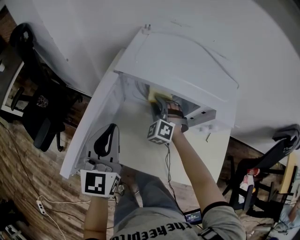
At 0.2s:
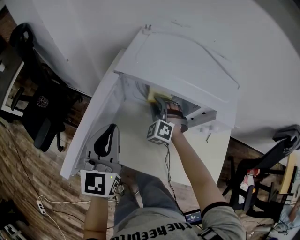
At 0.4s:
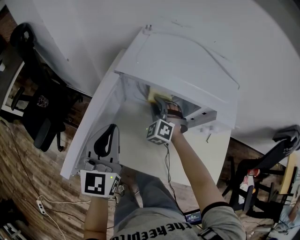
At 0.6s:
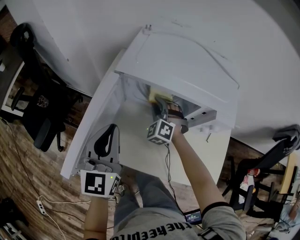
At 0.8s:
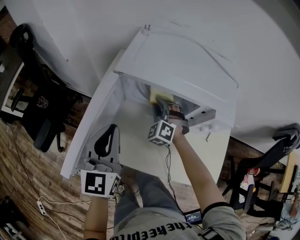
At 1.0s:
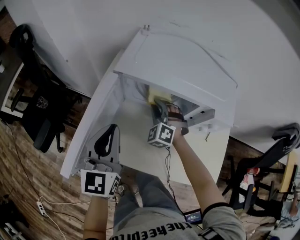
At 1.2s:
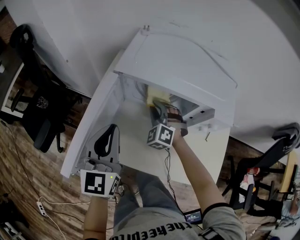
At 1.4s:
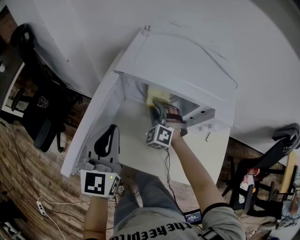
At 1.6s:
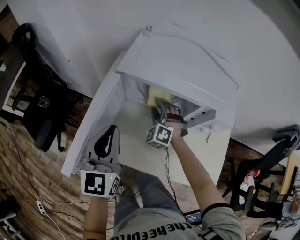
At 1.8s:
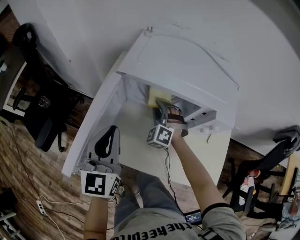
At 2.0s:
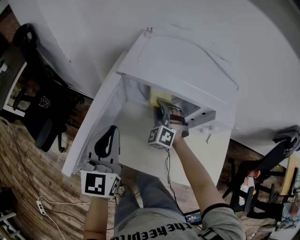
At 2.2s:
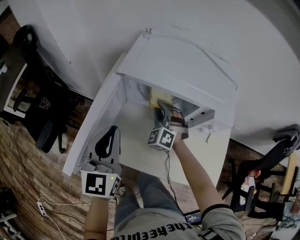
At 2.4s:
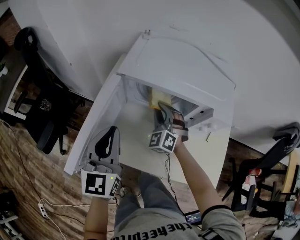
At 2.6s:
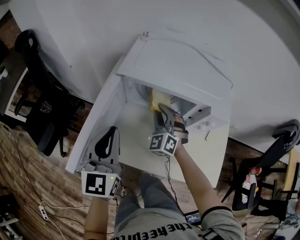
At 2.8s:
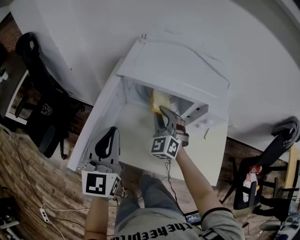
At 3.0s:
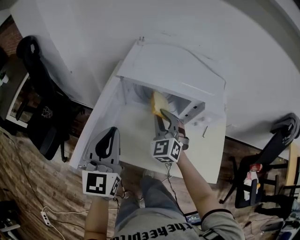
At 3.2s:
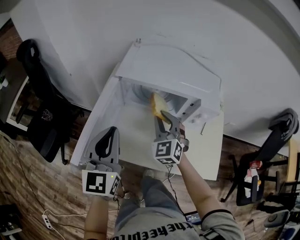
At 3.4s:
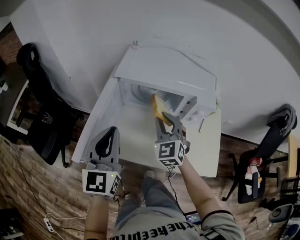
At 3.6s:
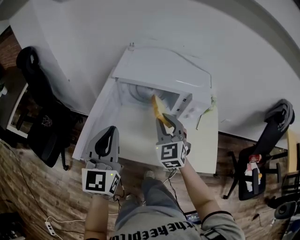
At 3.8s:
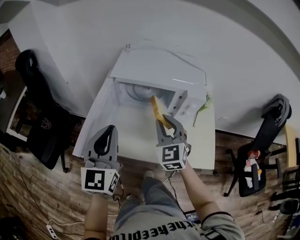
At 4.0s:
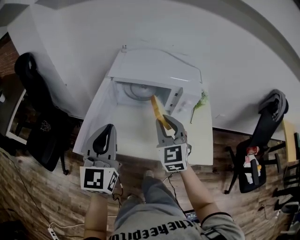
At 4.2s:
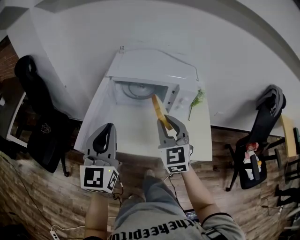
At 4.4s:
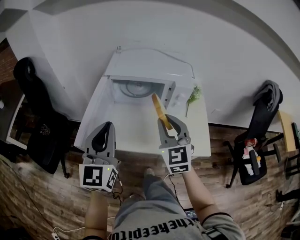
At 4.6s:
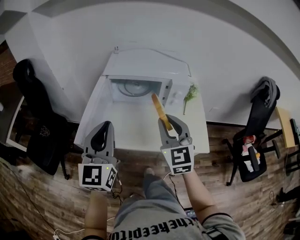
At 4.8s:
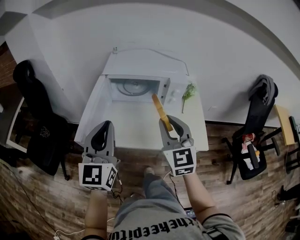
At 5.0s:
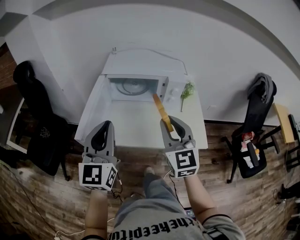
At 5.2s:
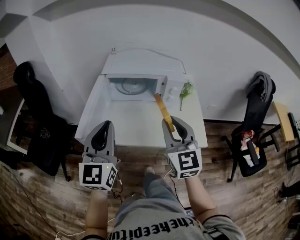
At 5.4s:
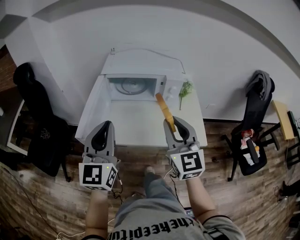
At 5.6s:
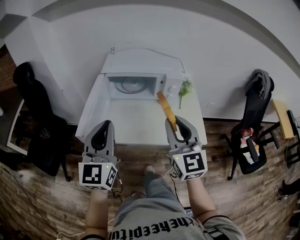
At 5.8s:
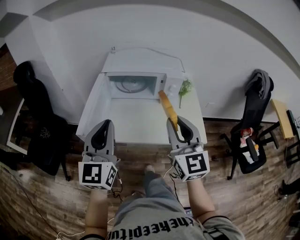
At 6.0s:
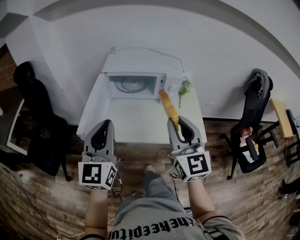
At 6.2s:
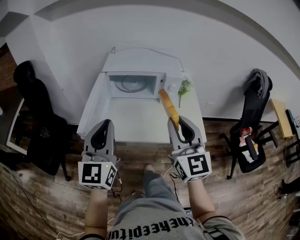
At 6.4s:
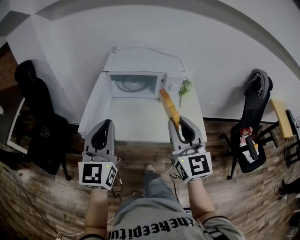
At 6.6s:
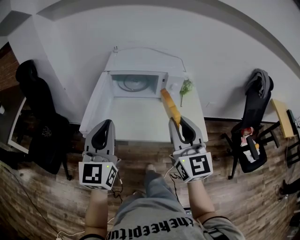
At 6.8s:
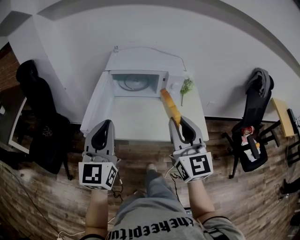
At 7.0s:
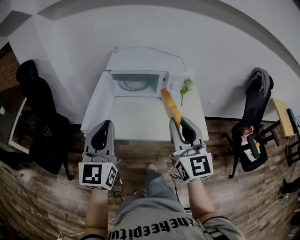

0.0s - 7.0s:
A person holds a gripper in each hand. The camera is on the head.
0.0s - 1.4s: The grippers move only a little.
1.4s - 2.8s: The right gripper goes roughly 10 cm upward, and swivels approximately 20 degrees.
2.8s - 4.2s: The left gripper heads backward and upward, covering roughly 10 cm; the right gripper heads backward and upward, covering approximately 20 cm, and turns by roughly 30 degrees.
4.2s - 5.6s: The left gripper goes approximately 5 cm backward; the right gripper heads backward and upward, covering approximately 15 cm.
5.6s - 7.0s: The grippers make only small movements.

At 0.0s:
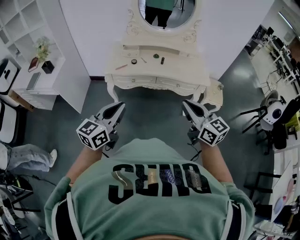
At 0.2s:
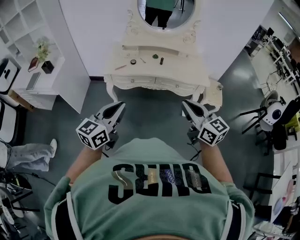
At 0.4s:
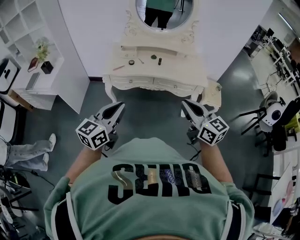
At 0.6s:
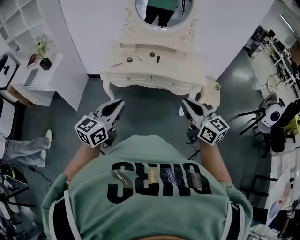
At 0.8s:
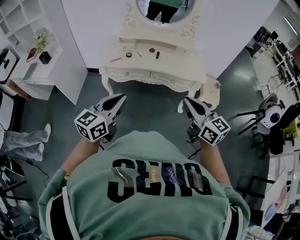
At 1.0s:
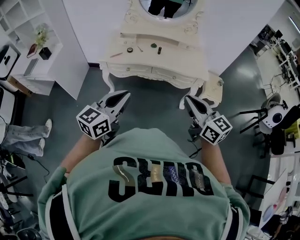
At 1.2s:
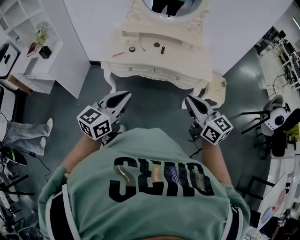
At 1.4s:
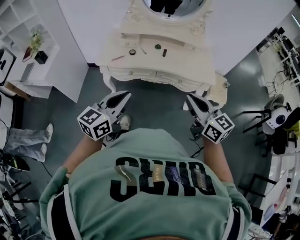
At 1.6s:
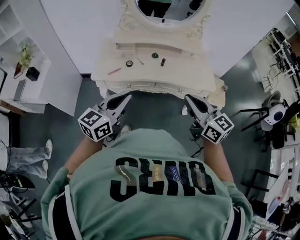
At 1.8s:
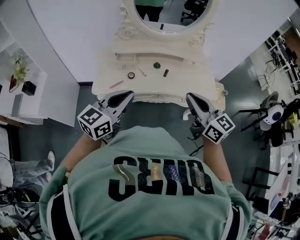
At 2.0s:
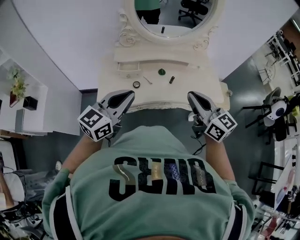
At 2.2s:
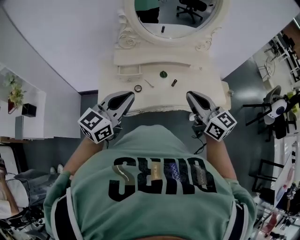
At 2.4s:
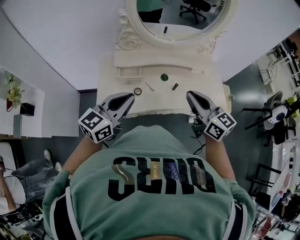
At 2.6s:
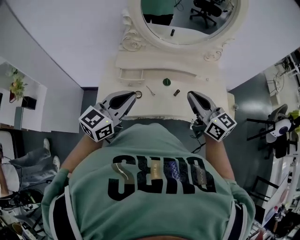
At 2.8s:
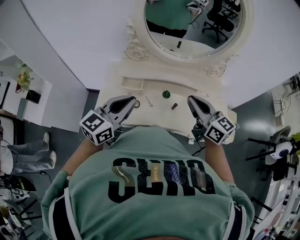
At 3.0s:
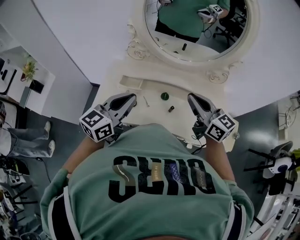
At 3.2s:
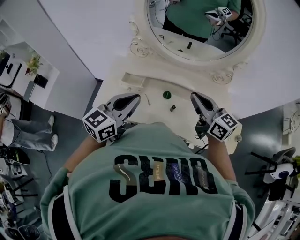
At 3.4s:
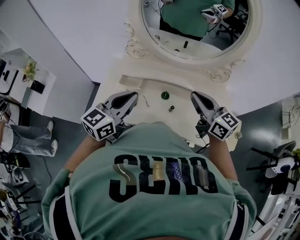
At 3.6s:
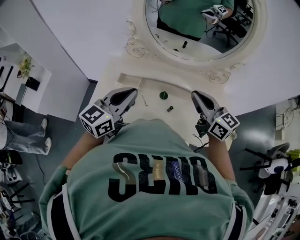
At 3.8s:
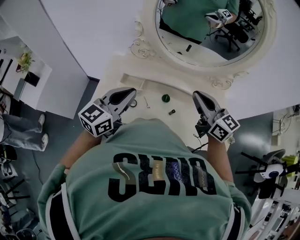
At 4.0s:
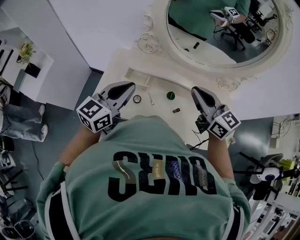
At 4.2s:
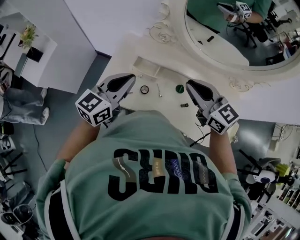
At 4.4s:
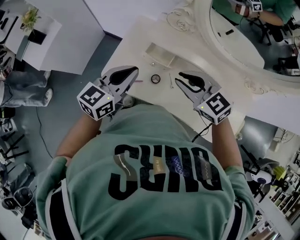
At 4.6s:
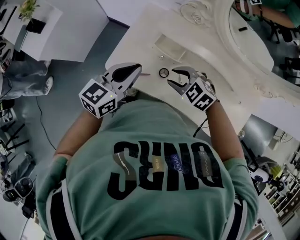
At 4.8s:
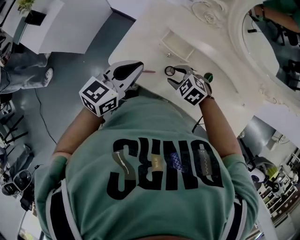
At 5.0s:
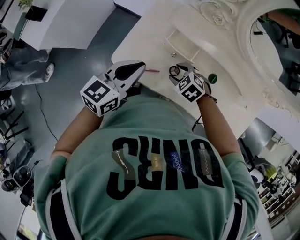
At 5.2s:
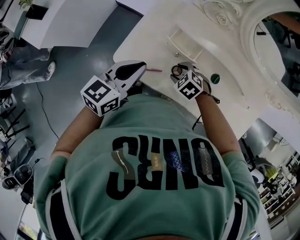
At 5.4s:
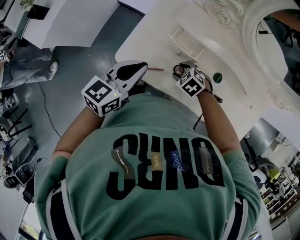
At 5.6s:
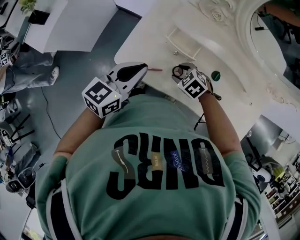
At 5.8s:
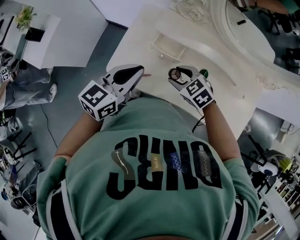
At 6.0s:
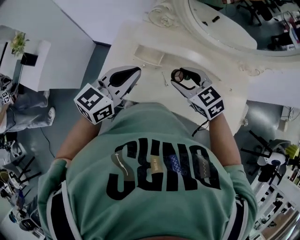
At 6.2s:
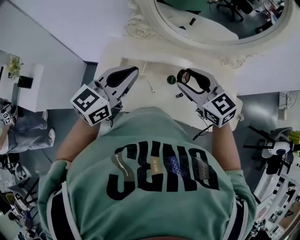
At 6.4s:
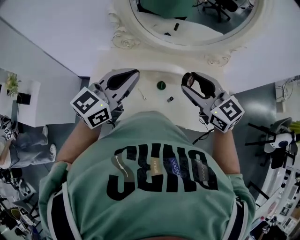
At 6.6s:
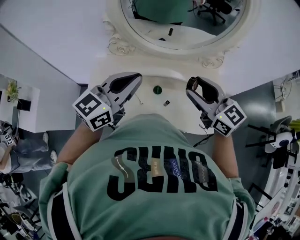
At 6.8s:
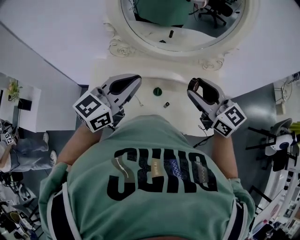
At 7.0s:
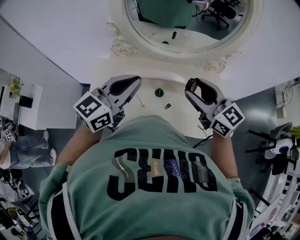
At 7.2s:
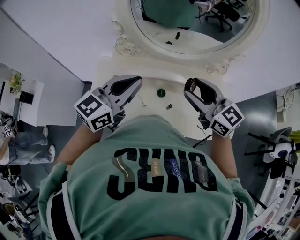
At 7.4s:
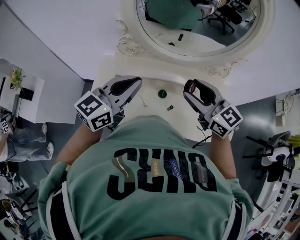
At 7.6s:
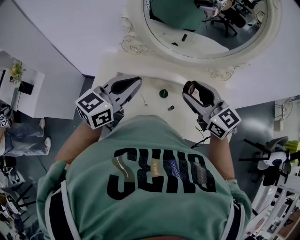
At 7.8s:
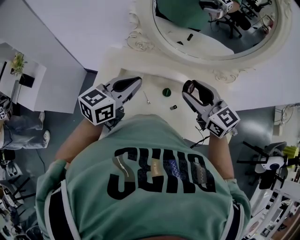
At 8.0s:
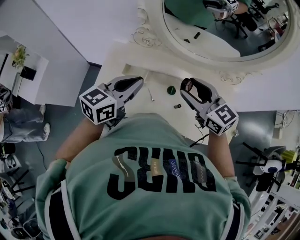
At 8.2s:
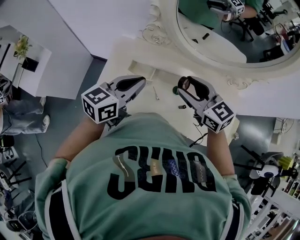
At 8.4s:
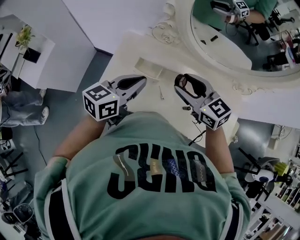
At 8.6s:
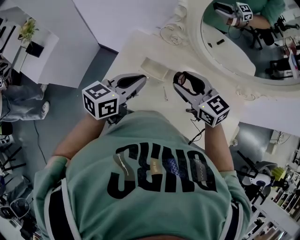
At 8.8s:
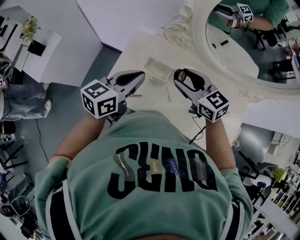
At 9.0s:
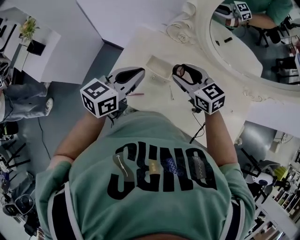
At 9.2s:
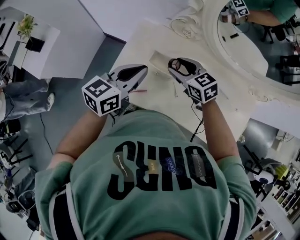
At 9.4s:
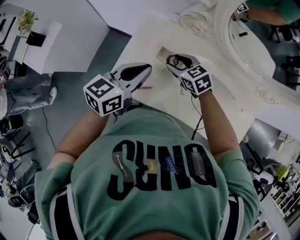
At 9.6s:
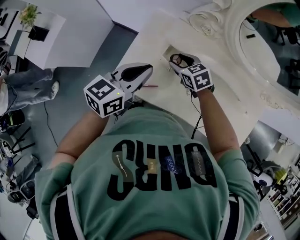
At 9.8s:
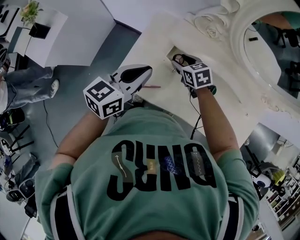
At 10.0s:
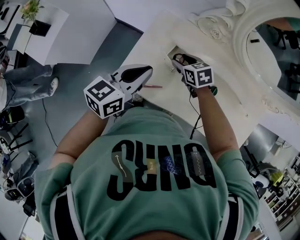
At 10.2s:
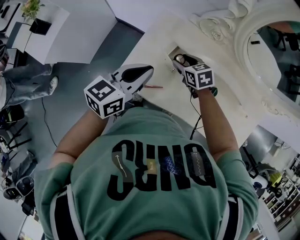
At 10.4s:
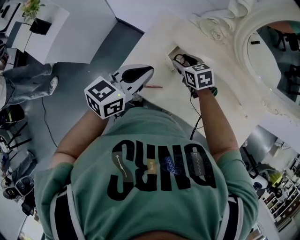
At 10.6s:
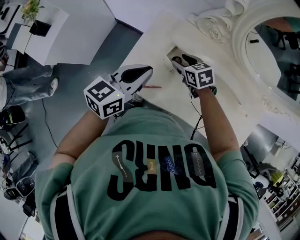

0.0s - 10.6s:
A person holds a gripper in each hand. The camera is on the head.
0.0s - 1.6s: Both grippers travel together forward, roughly 20 cm.
1.6s - 3.0s: The two grippers go approximately 35 cm forward.
3.0s - 4.6s: The left gripper ends up about 20 cm from where it was, while the right gripper moves roughly 35 cm, tilts its fingers roughly 50 degrees downward, and opens its fingers.
4.6s - 6.0s: Both grippers move upward and to the right, about 10 cm. The right gripper changes its angle by roughly 30 degrees.
6.0s - 7.6s: The left gripper travels to the right and upward by about 15 cm; the right gripper travels to the right and upward by approximately 20 cm, and turns by approximately 30 degrees.
7.6s - 9.0s: The left gripper is displaced to the left and downward by about 15 cm, and changes its angle by roughly 20 degrees; the right gripper is displaced to the left, downward and forward by approximately 25 cm, and turns by some 20 degrees.
9.0s - 10.6s: The right gripper goes roughly 20 cm downward and to the left, and rotates some 20 degrees, while the left gripper is displaced to the left by some 5 cm.

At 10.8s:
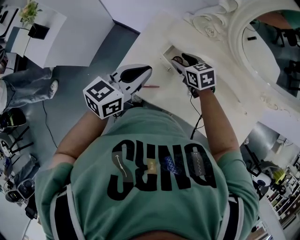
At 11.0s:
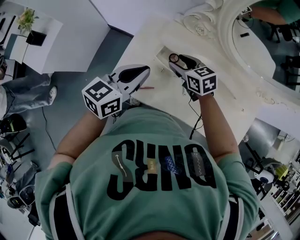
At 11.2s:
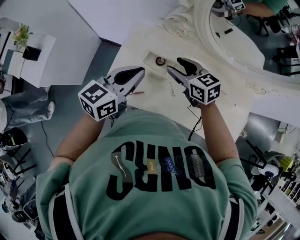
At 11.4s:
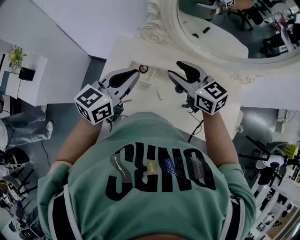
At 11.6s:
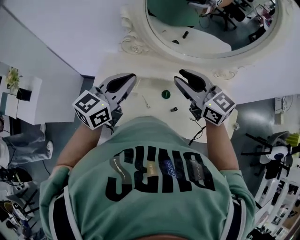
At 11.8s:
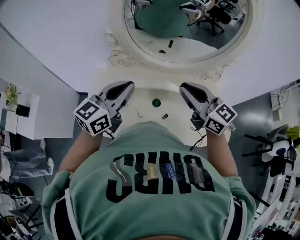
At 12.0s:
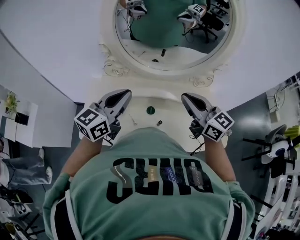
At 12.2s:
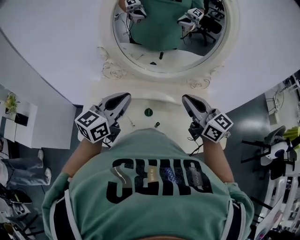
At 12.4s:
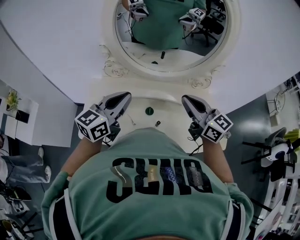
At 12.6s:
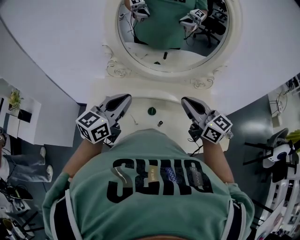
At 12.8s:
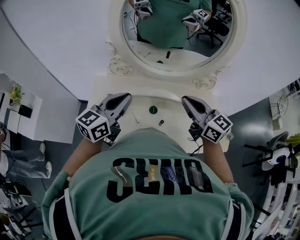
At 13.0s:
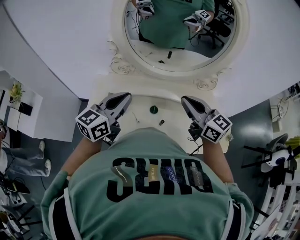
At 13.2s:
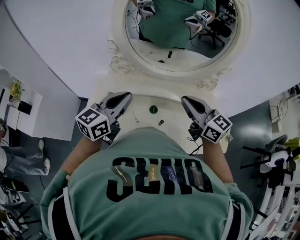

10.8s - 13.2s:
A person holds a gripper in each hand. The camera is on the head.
10.8s - 12.0s: The left gripper moves to the right and upward, roughly 25 cm, and swivels approximately 30 degrees. The right gripper shifts approximately 50 cm upward, to the right and backward, angles its fingers upward, by some 40 degrees, and closes its fingers.
12.0s - 13.2s: The grippers make only small movements.

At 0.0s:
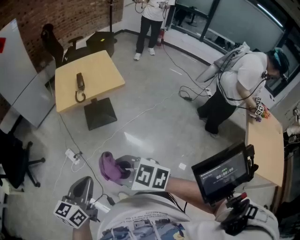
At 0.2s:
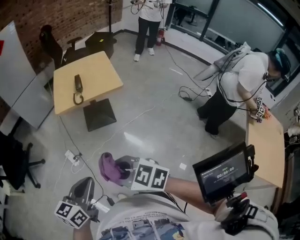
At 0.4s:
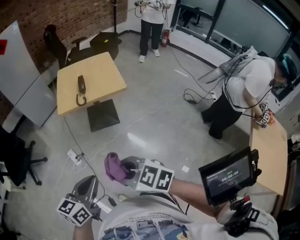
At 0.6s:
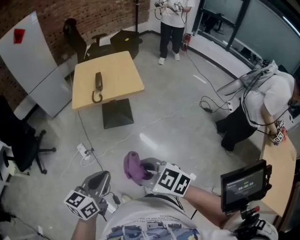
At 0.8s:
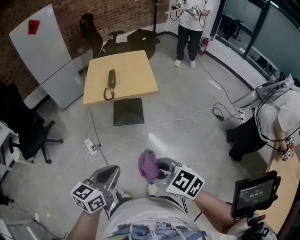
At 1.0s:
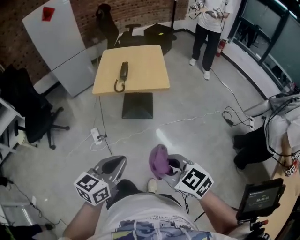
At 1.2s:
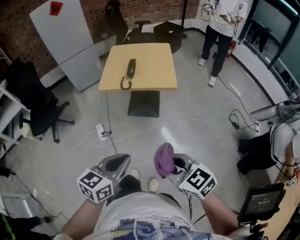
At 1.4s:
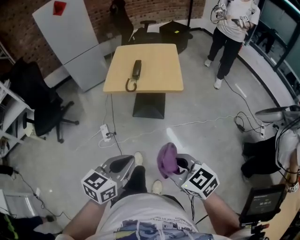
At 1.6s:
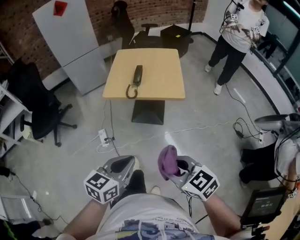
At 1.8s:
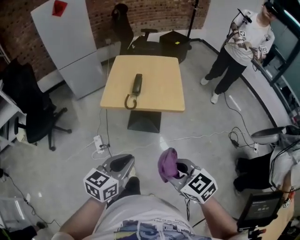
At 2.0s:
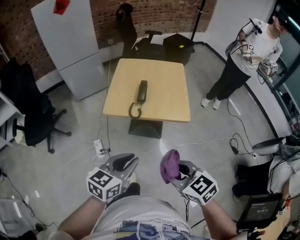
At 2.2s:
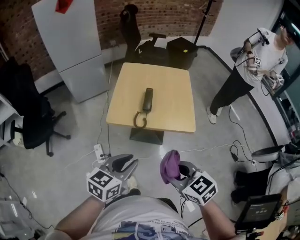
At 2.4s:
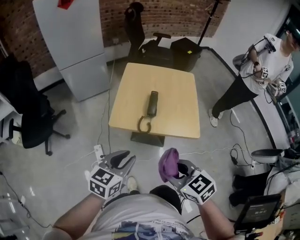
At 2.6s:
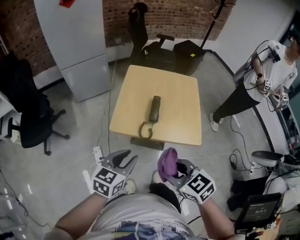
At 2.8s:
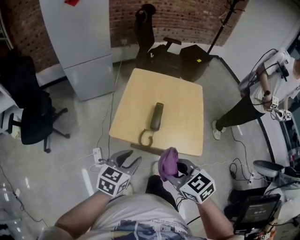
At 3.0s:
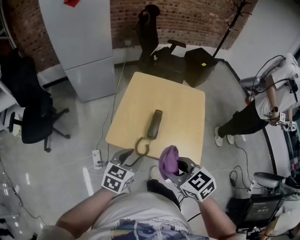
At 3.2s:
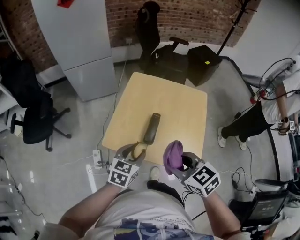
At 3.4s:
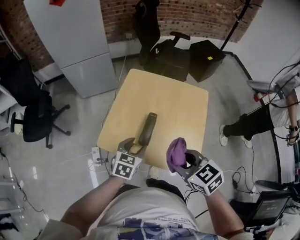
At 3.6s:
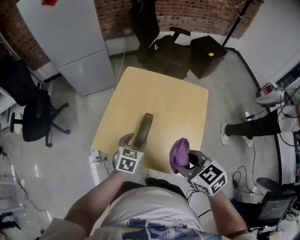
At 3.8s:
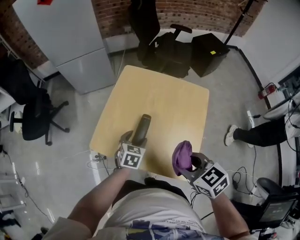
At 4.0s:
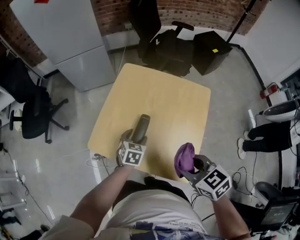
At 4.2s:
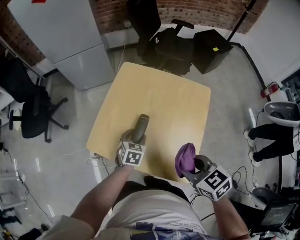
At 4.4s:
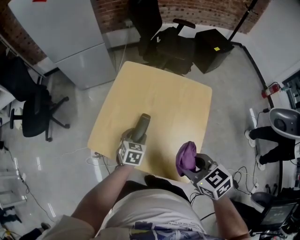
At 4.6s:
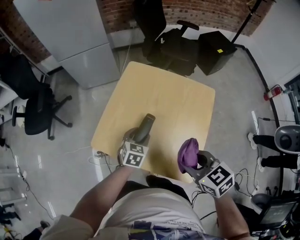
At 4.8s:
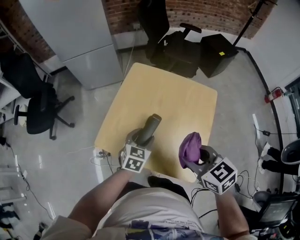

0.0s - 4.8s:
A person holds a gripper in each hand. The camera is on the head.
0.0s - 1.6s: The grippers both shift to the right and forward by roughly 20 cm.
1.6s - 3.2s: Both grippers travel together forward, some 40 cm. The left gripper opens.
3.2s - 4.8s: The left gripper travels to the right, forward and downward by approximately 15 cm. The right gripper shifts about 10 cm to the right and forward.
